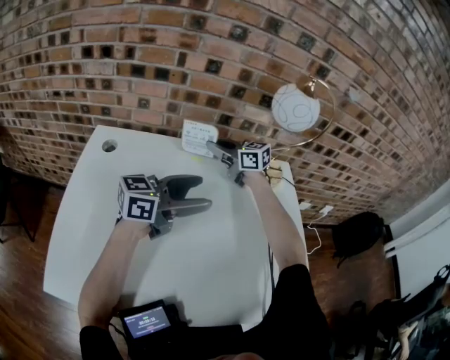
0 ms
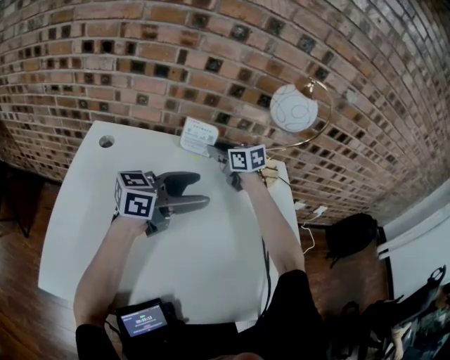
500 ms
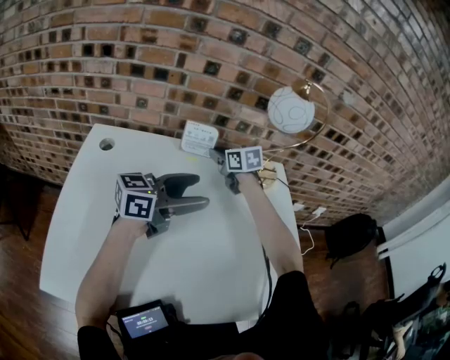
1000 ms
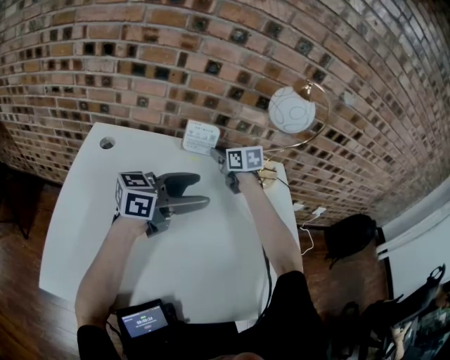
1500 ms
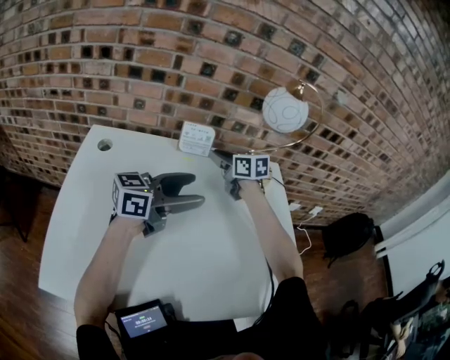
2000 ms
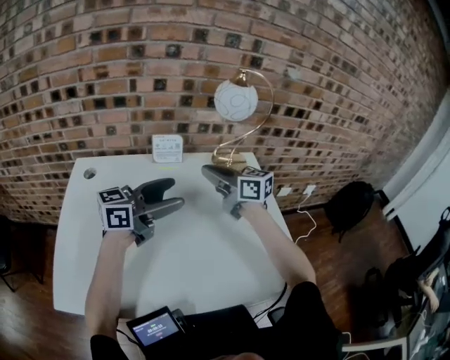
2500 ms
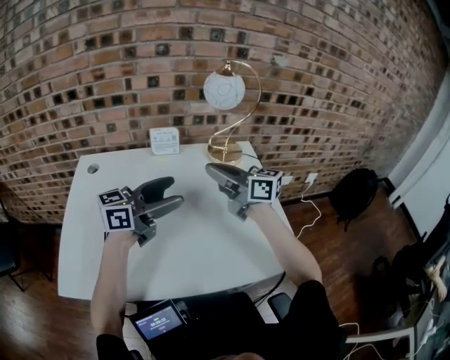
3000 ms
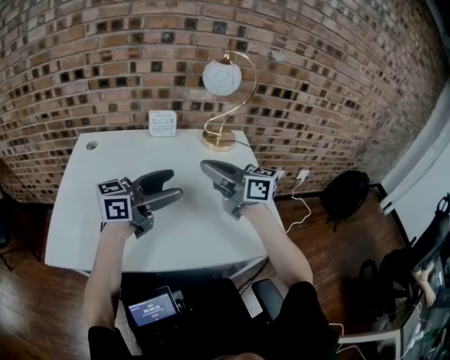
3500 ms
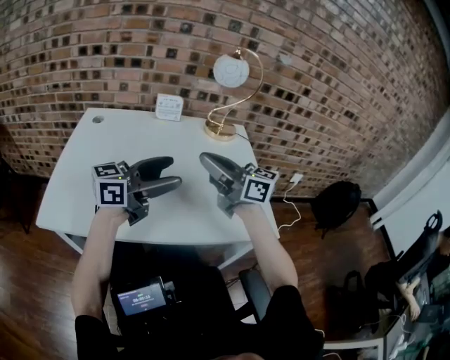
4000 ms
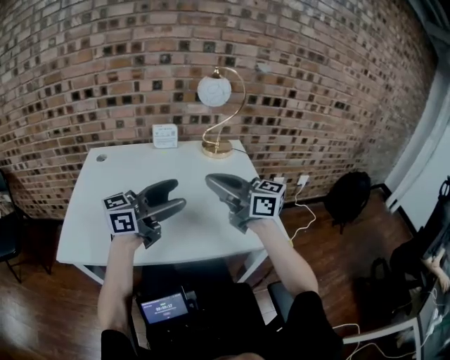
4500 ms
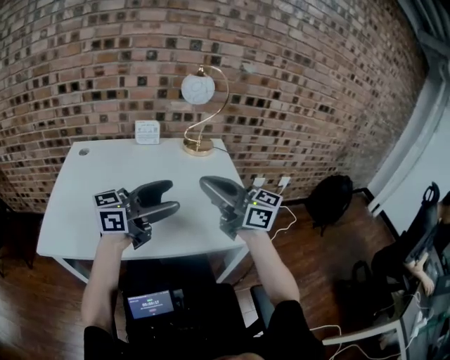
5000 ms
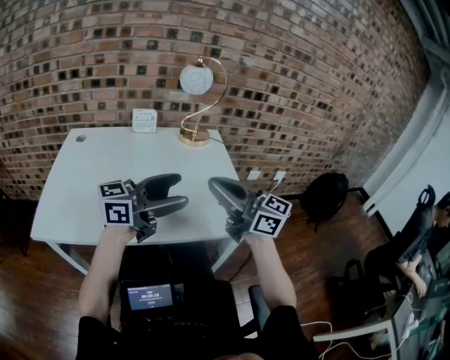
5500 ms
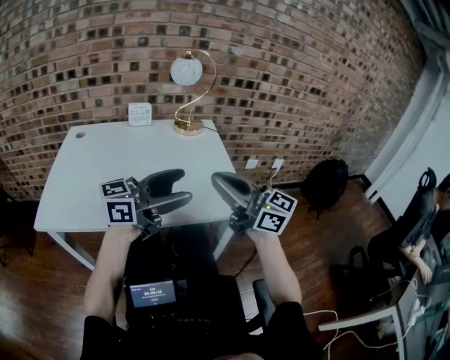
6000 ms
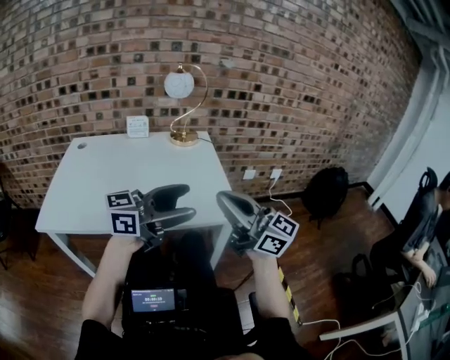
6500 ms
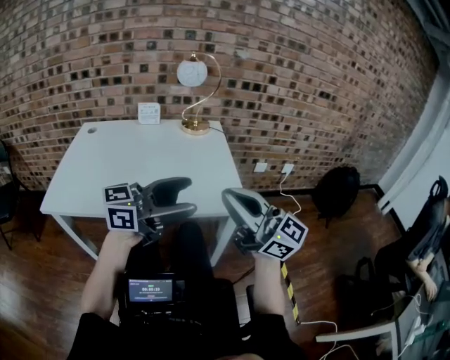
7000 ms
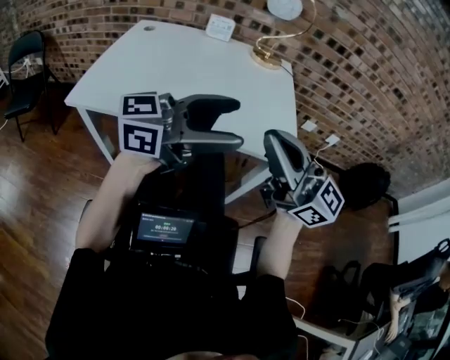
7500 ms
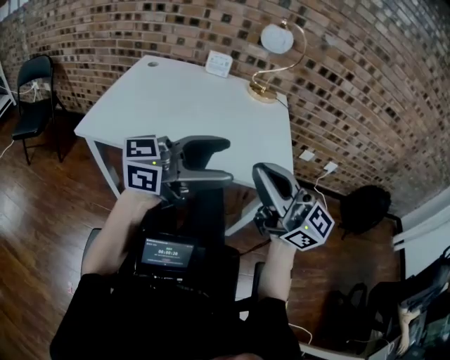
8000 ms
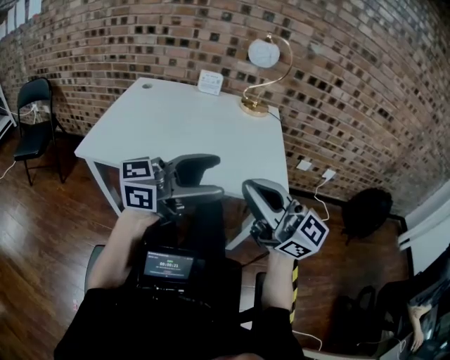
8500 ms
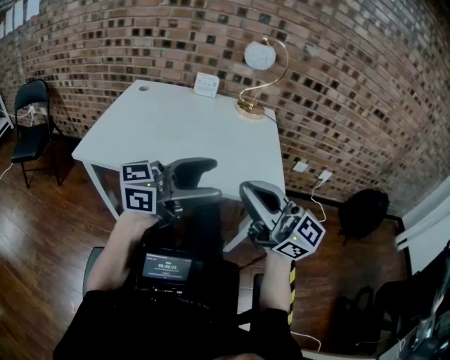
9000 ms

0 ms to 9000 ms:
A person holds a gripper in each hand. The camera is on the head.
0 ms to 2000 ms: The right gripper ends up about 5 cm from where it was, and rotates approximately 20 degrees.
2000 ms to 4500 ms: The left gripper ends up some 20 cm from where it was. The right gripper moves approximately 40 cm, angles its fingers upward, by some 30 degrees, and closes up.
4500 ms to 7000 ms: The right gripper ends up roughly 25 cm from where it was, and rotates roughly 20 degrees, while the left gripper shifts by roughly 20 cm.
7000 ms to 9000 ms: The right gripper moves approximately 5 cm, while the left gripper moves some 5 cm.

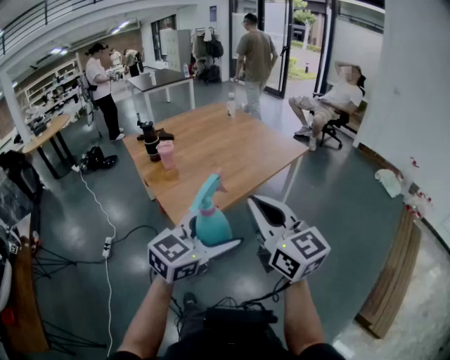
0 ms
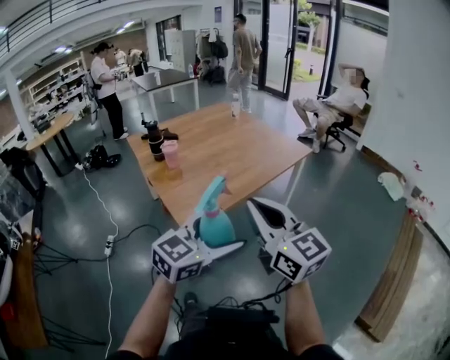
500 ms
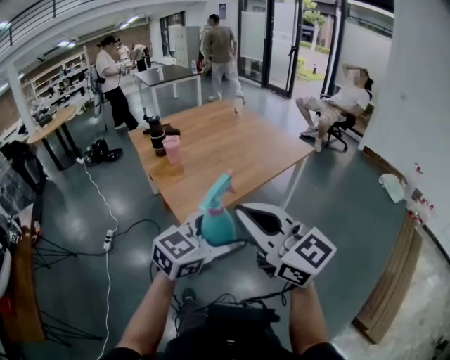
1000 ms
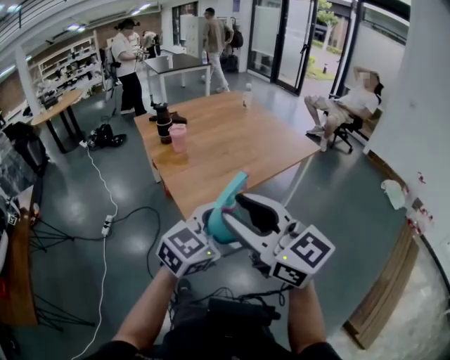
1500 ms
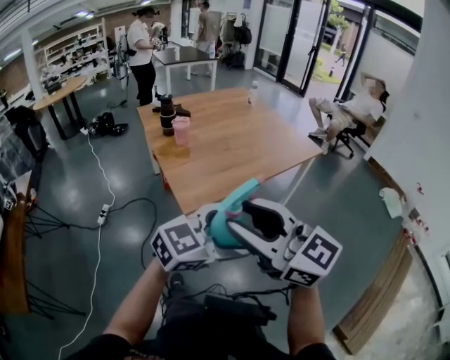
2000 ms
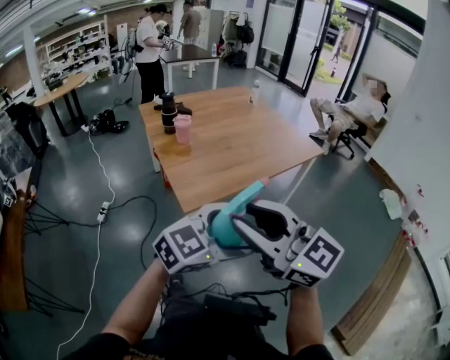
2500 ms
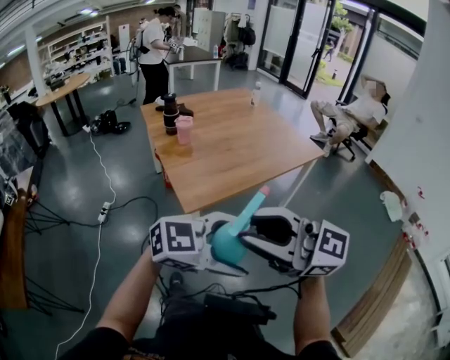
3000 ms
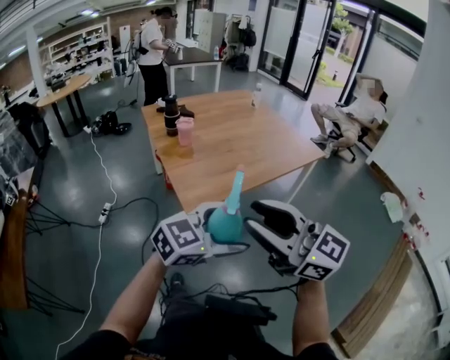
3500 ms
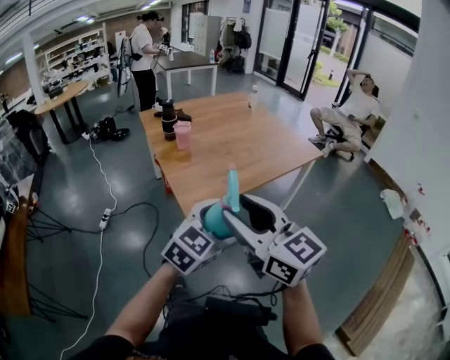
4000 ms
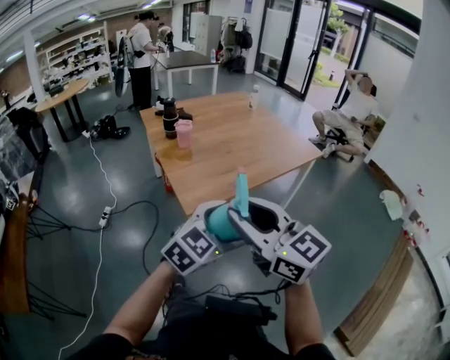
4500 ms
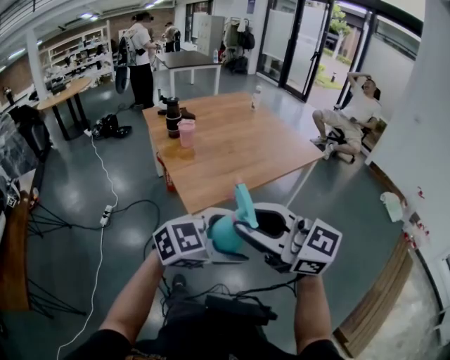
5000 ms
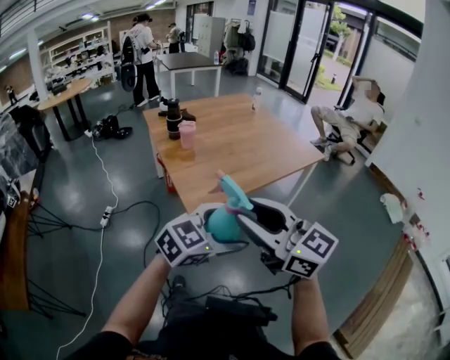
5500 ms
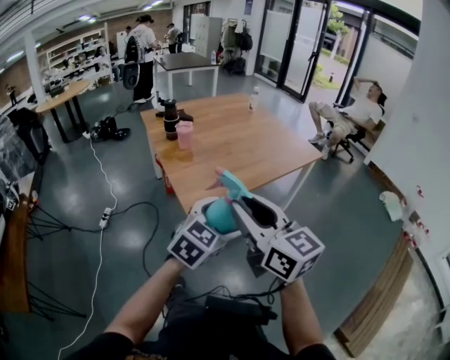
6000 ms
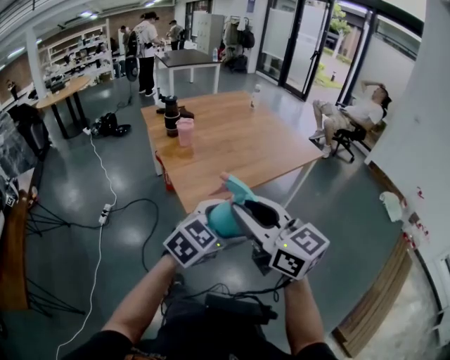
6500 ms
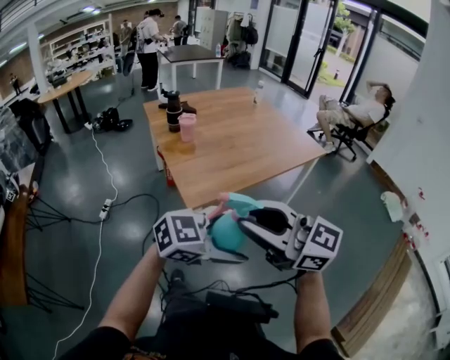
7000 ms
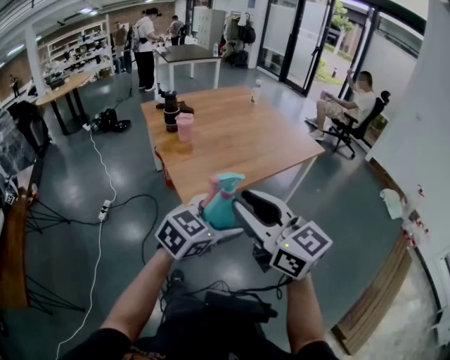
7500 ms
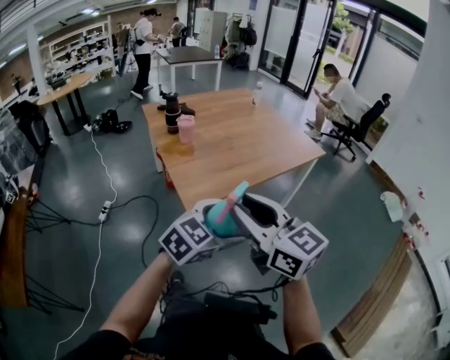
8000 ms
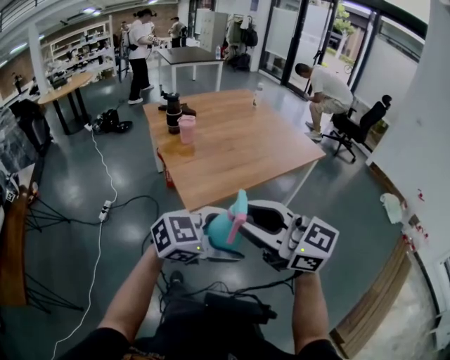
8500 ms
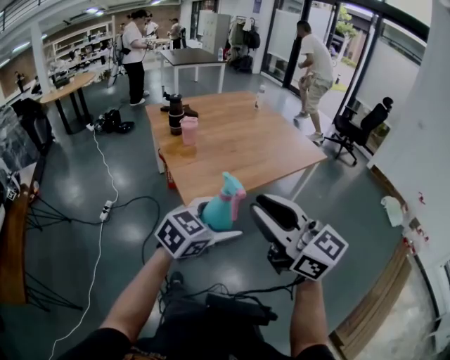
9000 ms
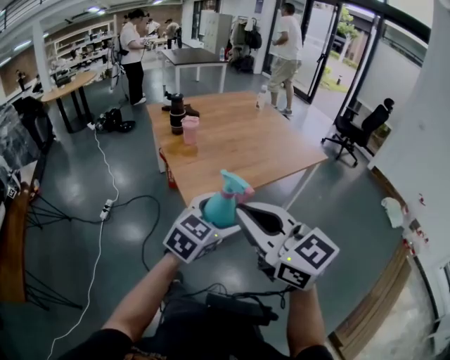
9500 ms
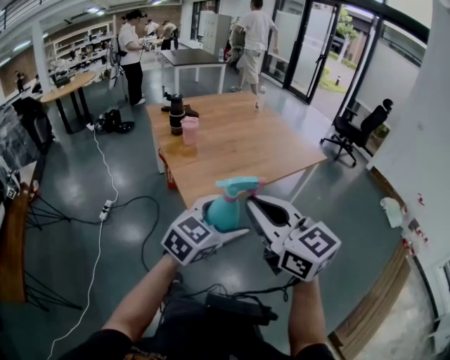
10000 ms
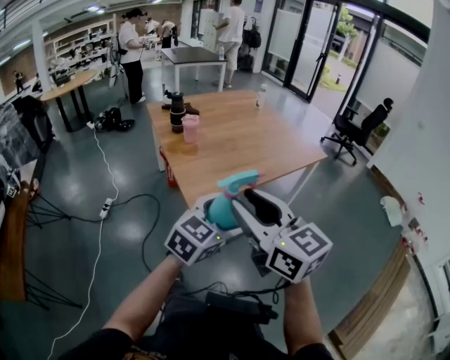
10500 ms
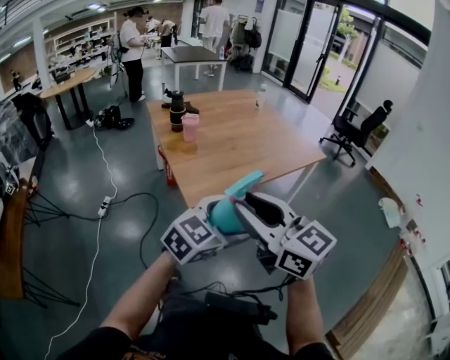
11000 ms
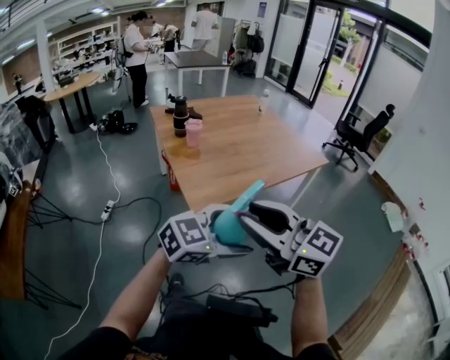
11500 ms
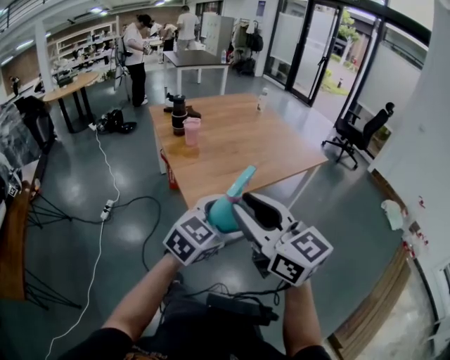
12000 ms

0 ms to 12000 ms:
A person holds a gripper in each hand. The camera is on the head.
0 ms to 2000 ms: The right gripper moves backward and to the left, about 10 cm, rotates approximately 30 degrees, and opens up.
2000 ms to 4000 ms: The left gripper changes place by about 5 cm, and changes its angle by approximately 20 degrees.
8000 ms to 10000 ms: The right gripper closes its fingers.
10000 ms to 12000 ms: The right gripper opens its fingers.

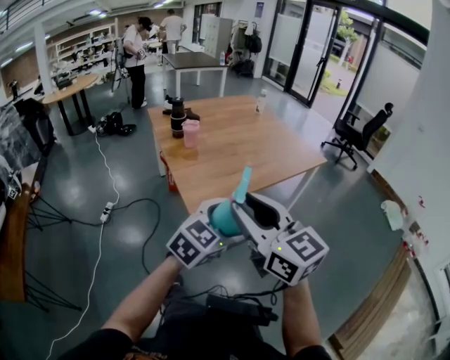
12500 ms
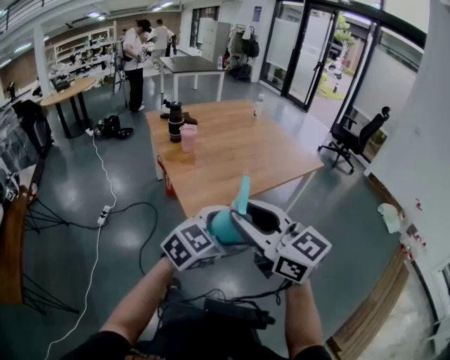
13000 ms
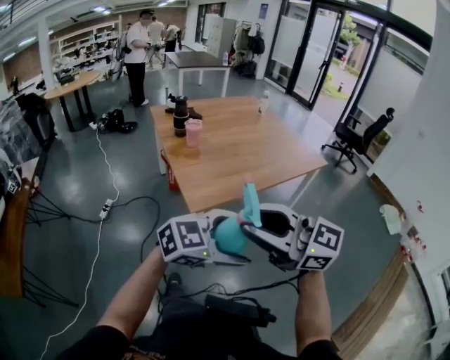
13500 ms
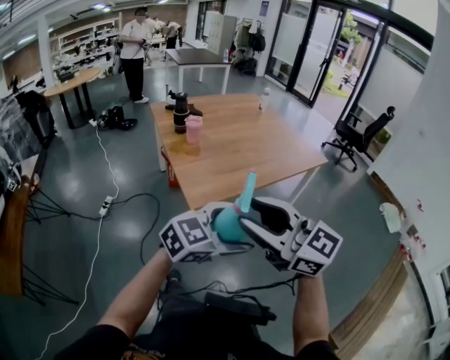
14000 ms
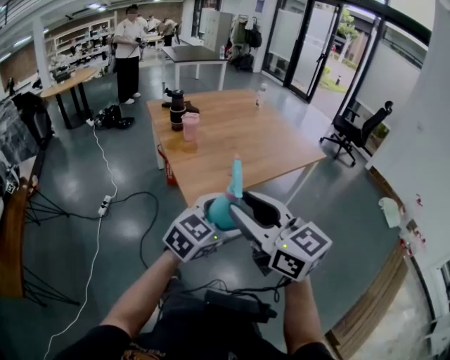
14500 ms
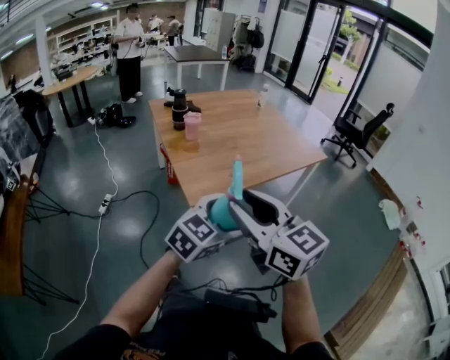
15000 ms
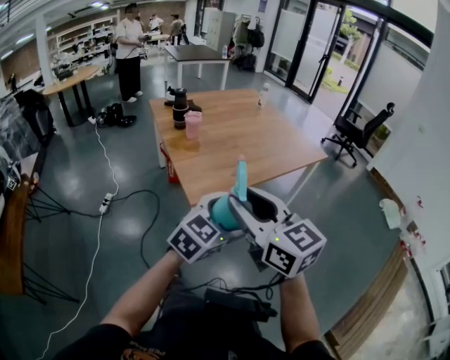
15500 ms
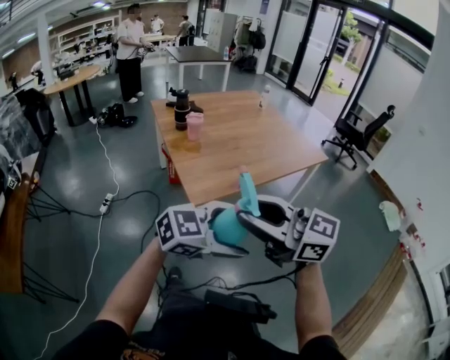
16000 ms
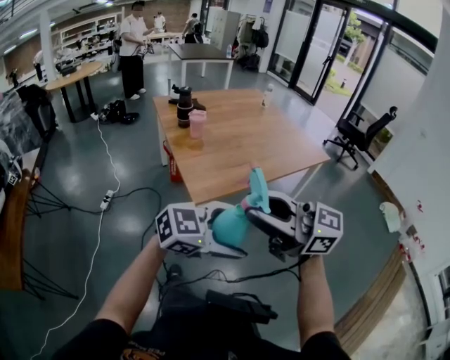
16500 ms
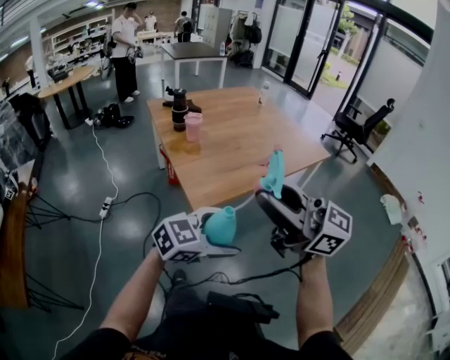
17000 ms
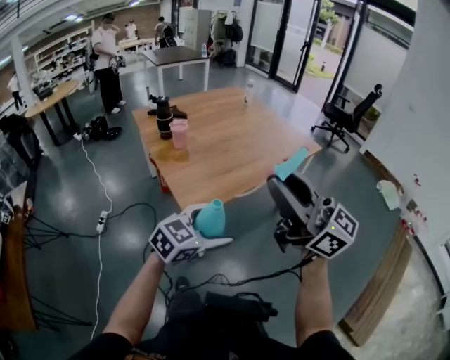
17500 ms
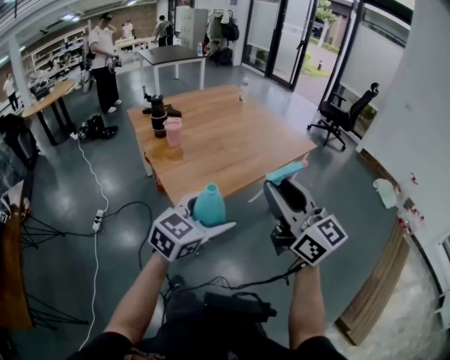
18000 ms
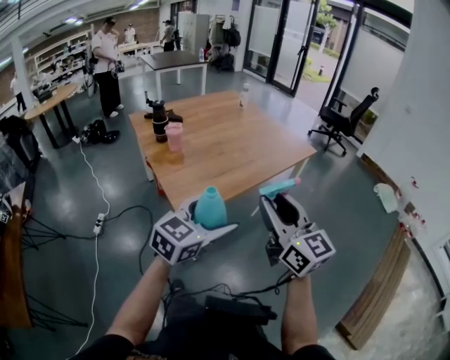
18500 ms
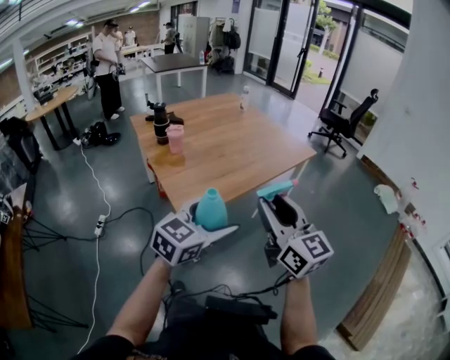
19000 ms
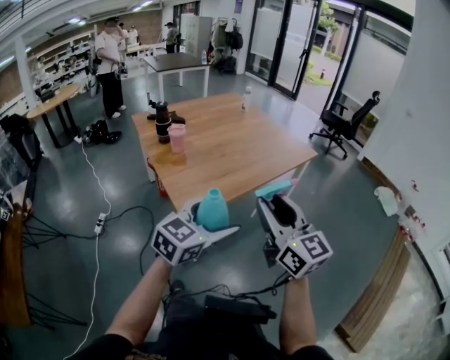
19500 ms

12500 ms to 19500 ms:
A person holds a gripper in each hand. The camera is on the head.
14500 ms to 16000 ms: The left gripper shifts by roughly 10 cm, and rotates roughly 30 degrees, while the right gripper changes its angle by about 20 degrees.
16000 ms to 17500 ms: The left gripper ends up approximately 10 cm from where it was, while the right gripper changes place by about 10 cm, and changes its angle by some 30 degrees.
17500 ms to 19500 ms: The left gripper travels upward by about 5 cm. Meanwhile the right gripper heads downward, covering about 10 cm, and swivels about 30 degrees.
